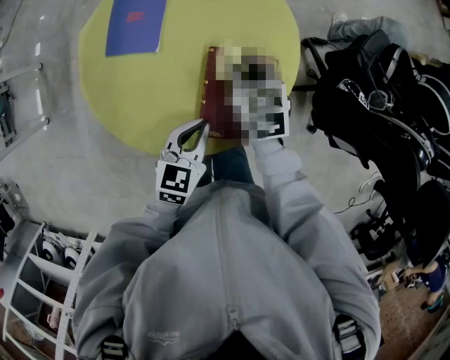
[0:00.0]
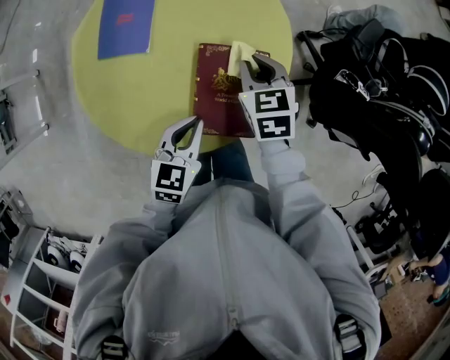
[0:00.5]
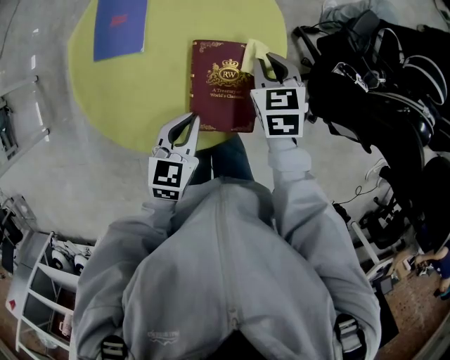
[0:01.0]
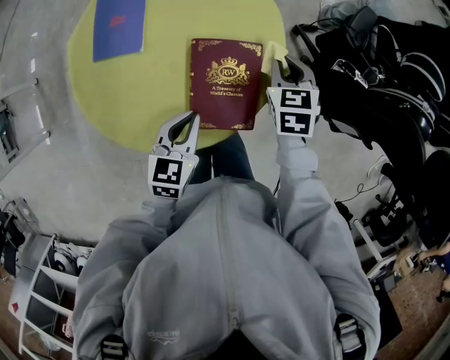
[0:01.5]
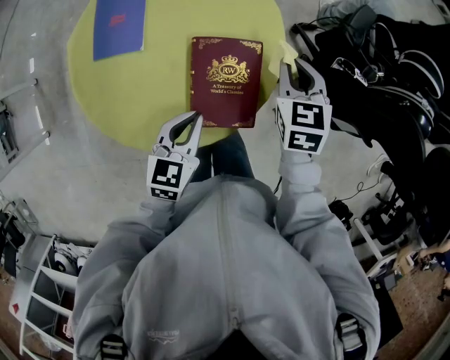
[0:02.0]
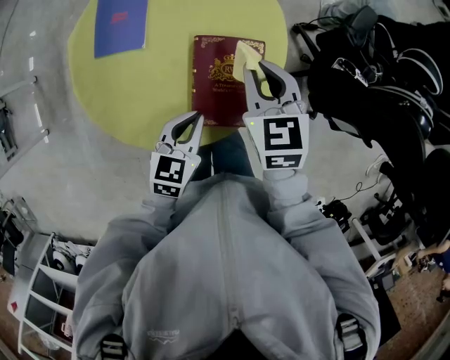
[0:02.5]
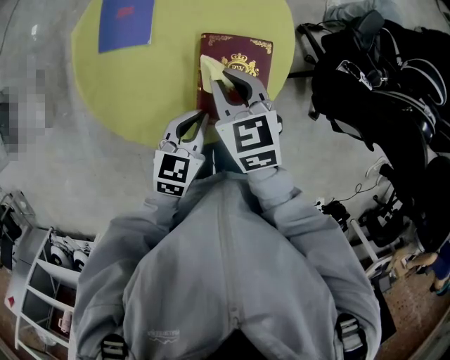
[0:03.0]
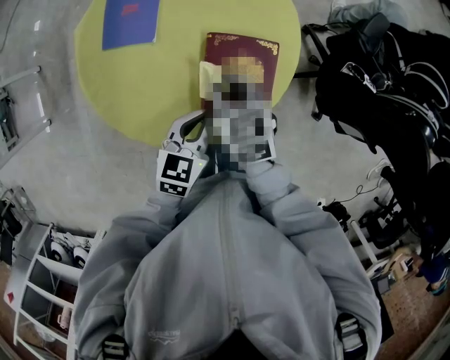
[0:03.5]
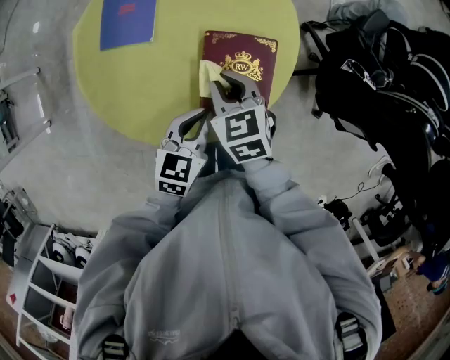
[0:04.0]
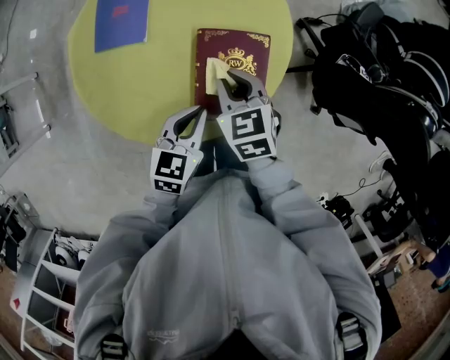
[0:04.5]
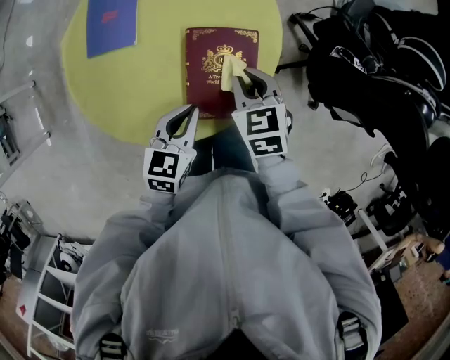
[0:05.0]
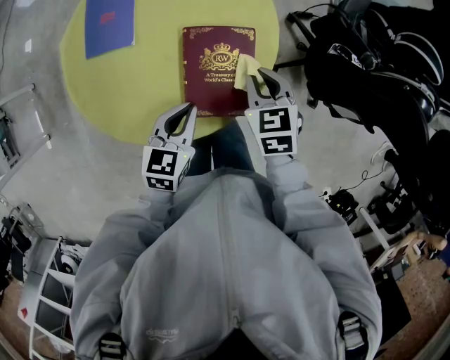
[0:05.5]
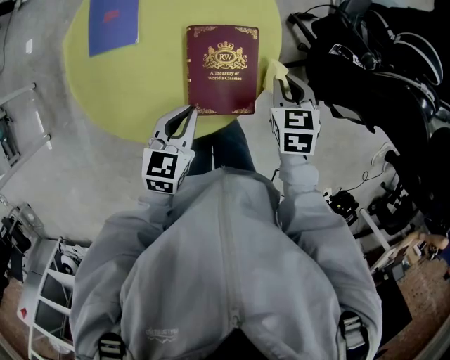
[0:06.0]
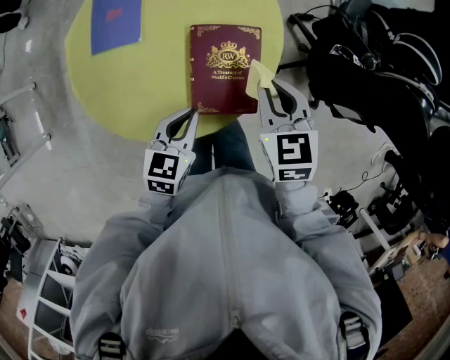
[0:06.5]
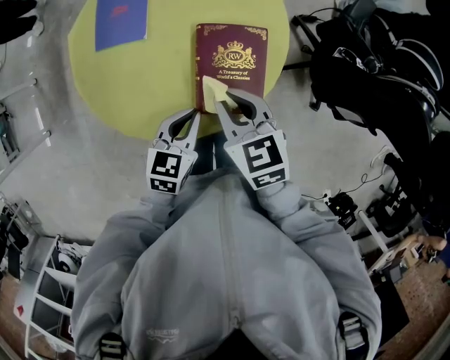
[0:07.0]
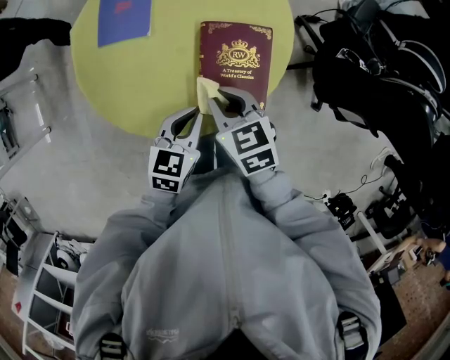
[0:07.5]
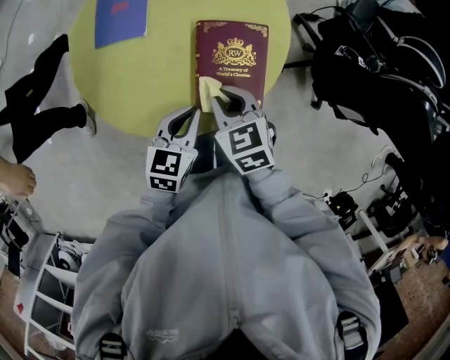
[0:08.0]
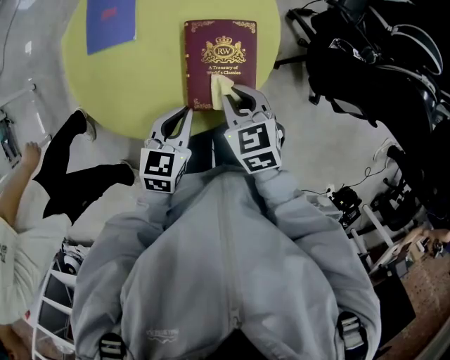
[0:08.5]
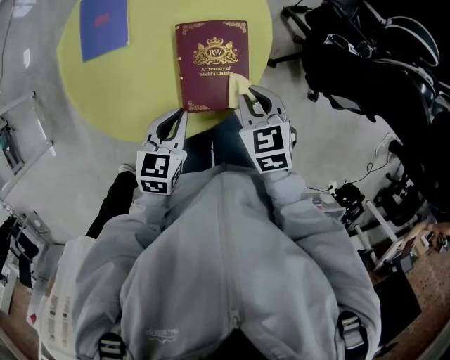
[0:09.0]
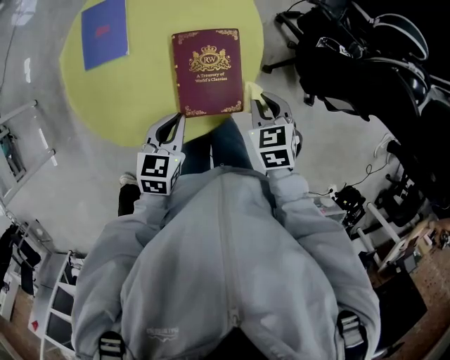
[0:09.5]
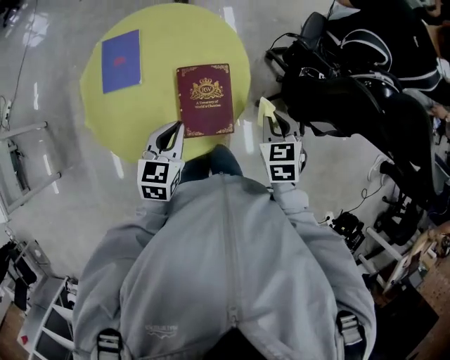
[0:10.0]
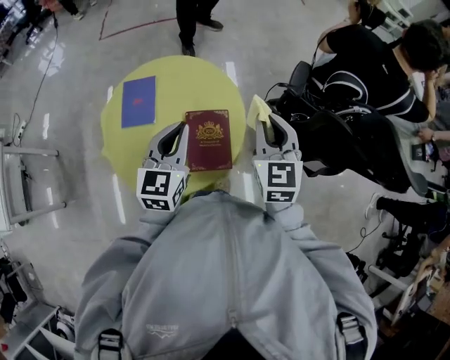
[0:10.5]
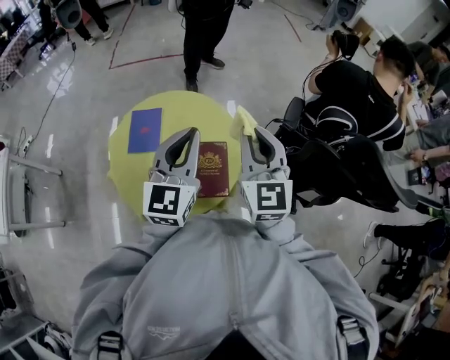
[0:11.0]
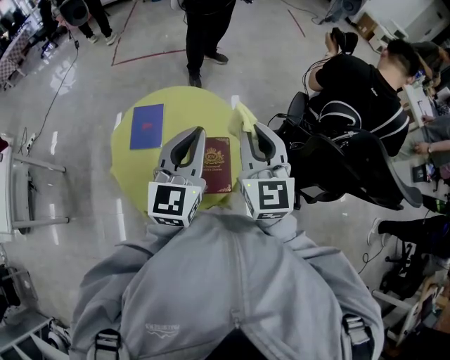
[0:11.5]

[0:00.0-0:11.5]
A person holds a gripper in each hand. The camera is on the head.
0:00.0 to 0:02.0: The right gripper goes about 15 cm to the right, and rotates some 20 degrees.
0:02.0 to 0:04.0: The right gripper goes roughly 20 cm to the left and backward, and swivels some 20 degrees.
0:04.0 to 0:06.0: The right gripper goes approximately 20 cm to the right, and swivels some 20 degrees.
0:06.0 to 0:07.5: The right gripper travels to the left by roughly 20 cm, and rotates roughly 30 degrees.
0:07.5 to 0:09.5: The right gripper goes some 15 cm to the right, and turns by roughly 20 degrees.
0:09.5 to 0:11.5: Both grippers travel together upward, some 40 cm. The right gripper tips its fingers upward by approximately 50 degrees; the left gripper angles its fingers upward, by some 40 degrees.

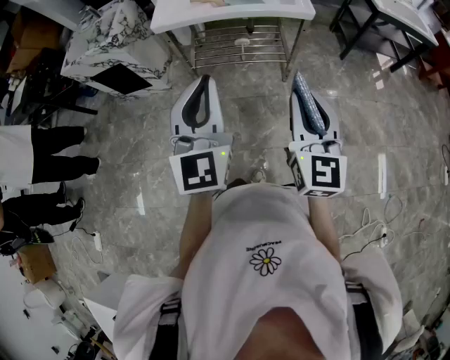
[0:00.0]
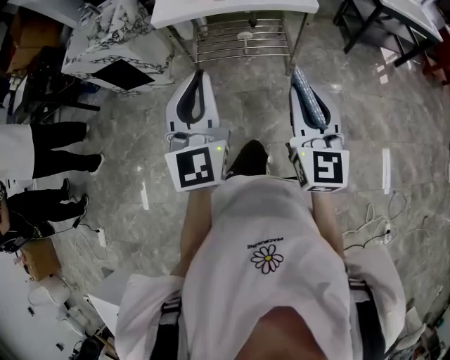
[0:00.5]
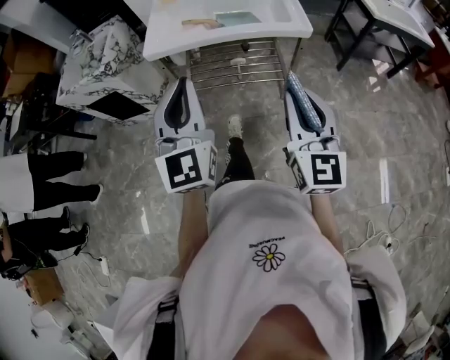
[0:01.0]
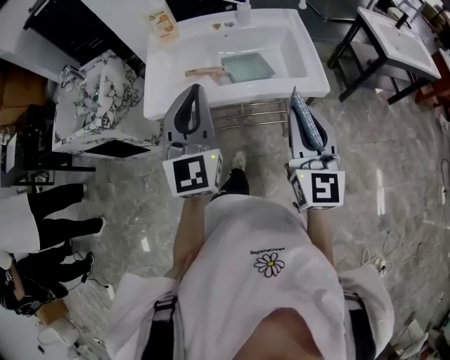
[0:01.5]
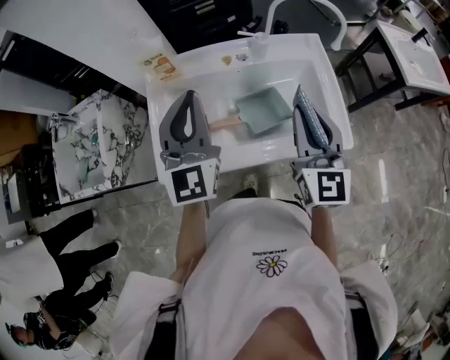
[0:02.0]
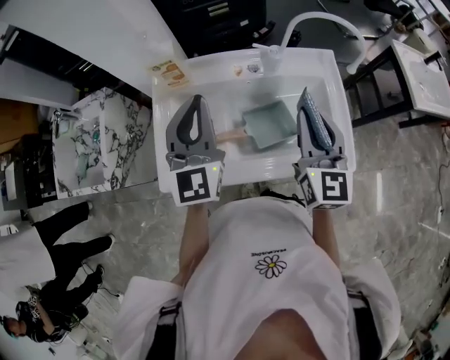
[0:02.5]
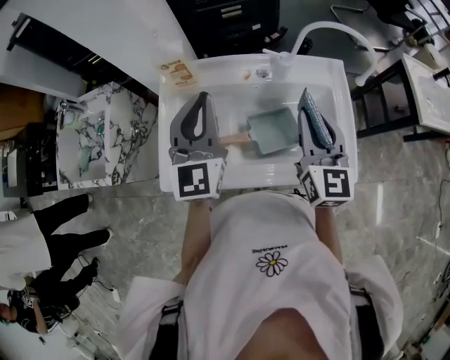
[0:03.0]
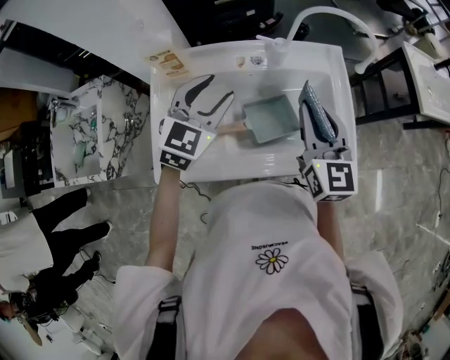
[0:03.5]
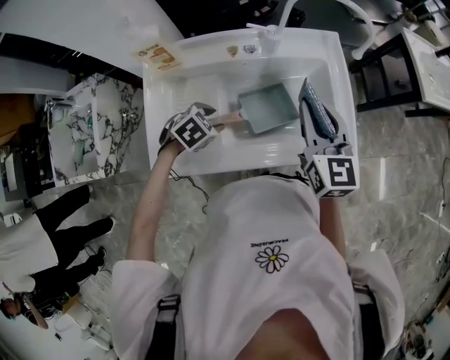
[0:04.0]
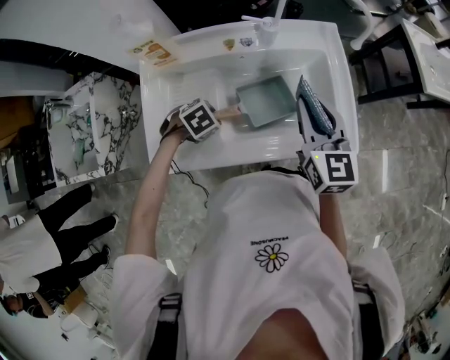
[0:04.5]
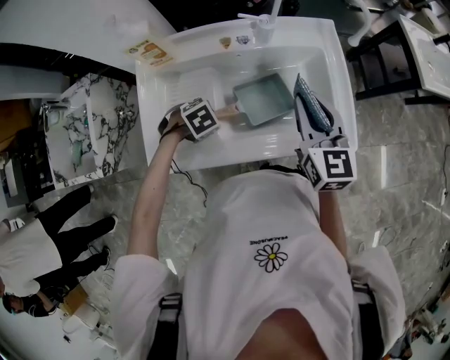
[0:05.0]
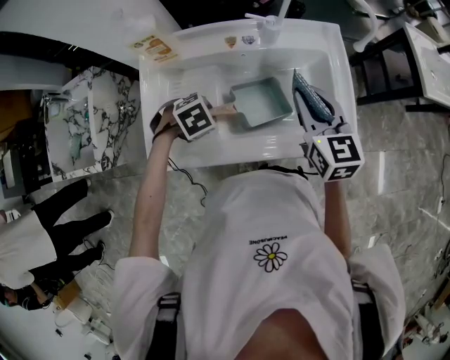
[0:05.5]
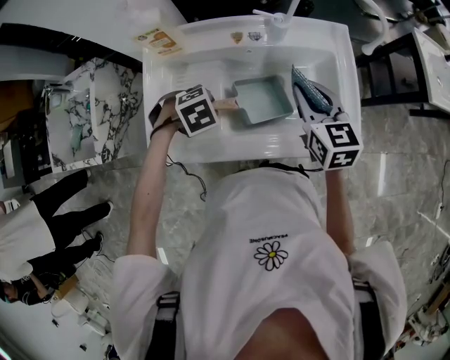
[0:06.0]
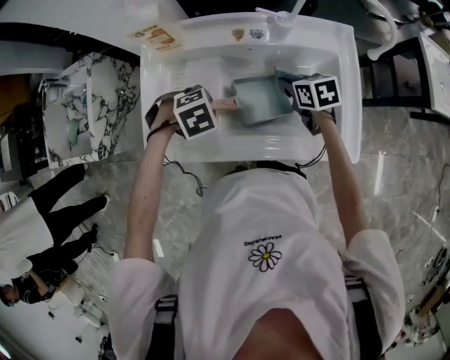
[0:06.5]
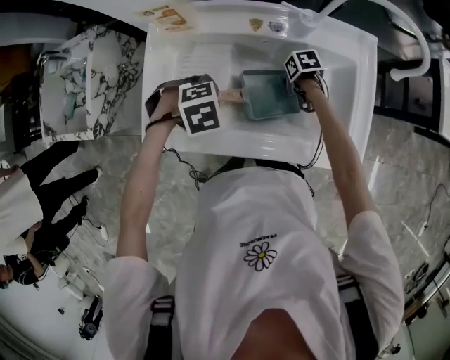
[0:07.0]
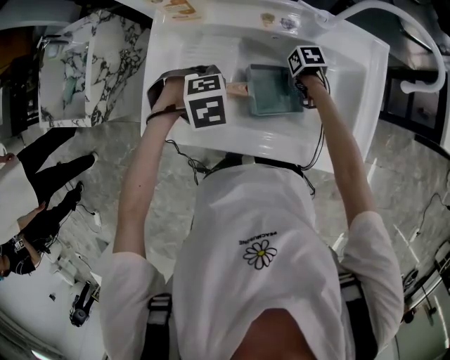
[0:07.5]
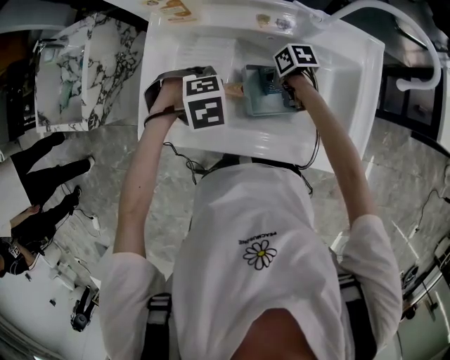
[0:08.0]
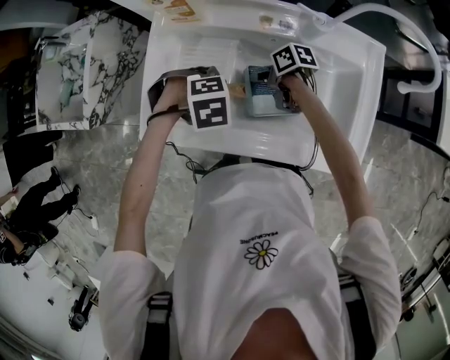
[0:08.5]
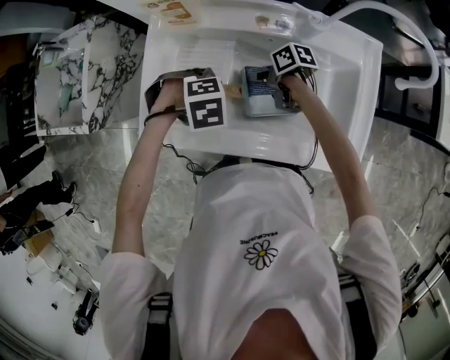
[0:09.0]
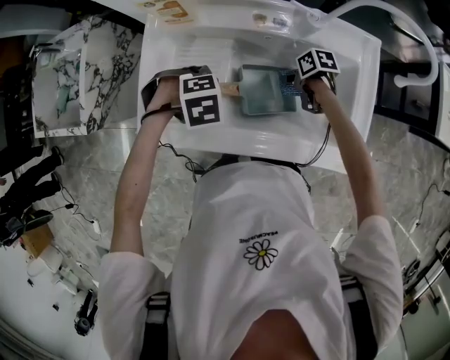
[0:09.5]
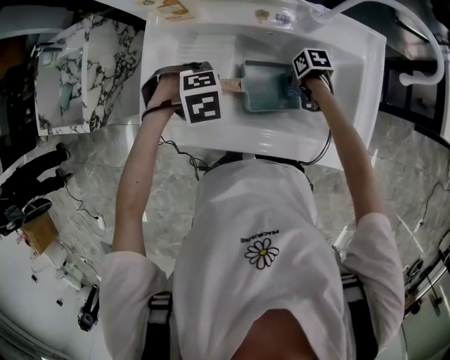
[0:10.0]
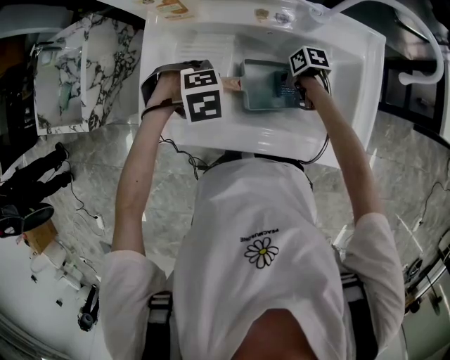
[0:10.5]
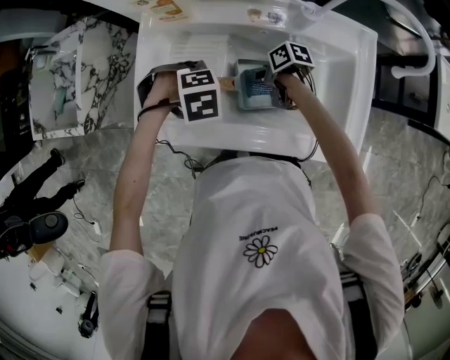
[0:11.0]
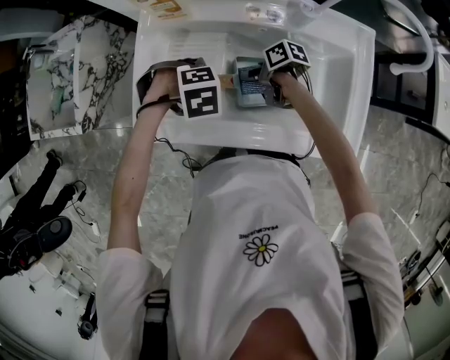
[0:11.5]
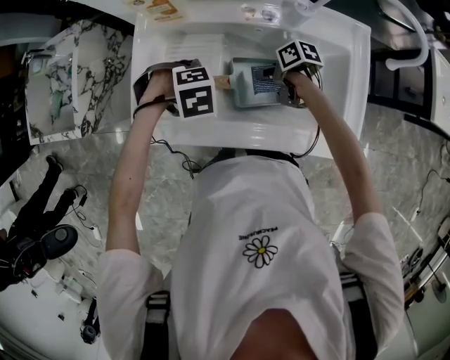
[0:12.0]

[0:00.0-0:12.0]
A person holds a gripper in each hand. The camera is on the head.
0:00.0 to 0:02.0: The two grippers travel together, forward, about 60 cm.
0:02.0 to 0:04.0: The left gripper heads downward, covering approximately 30 cm, tilts its fingers approximately 80 degrees downward, and opens up. The right gripper moves roughly 10 cm.
0:04.0 to 0:06.0: The right gripper moves downward, some 5 cm.
0:06.0 to 0:08.0: The right gripper shifts approximately 25 cm downward, and changes its angle by roughly 70 degrees.
0:08.0 to 0:10.0: The right gripper ends up about 10 cm from where it was.
0:10.0 to 0:12.0: The right gripper travels upward by some 5 cm.

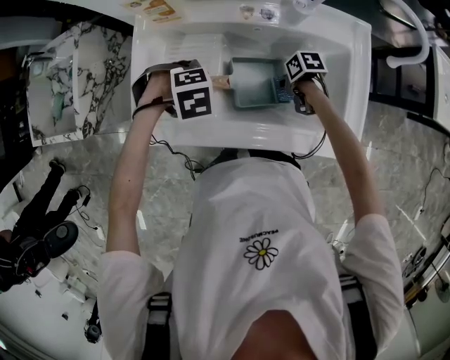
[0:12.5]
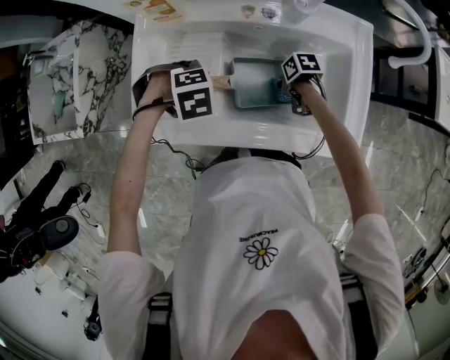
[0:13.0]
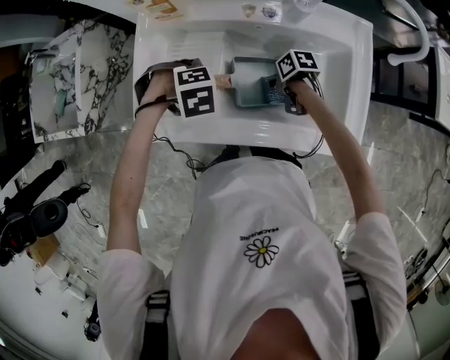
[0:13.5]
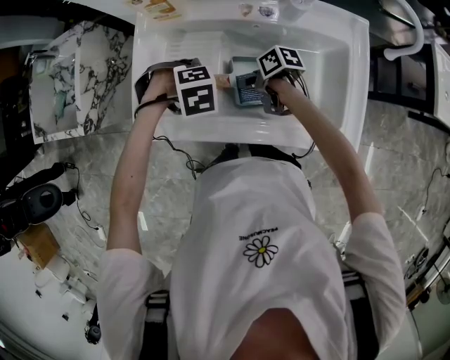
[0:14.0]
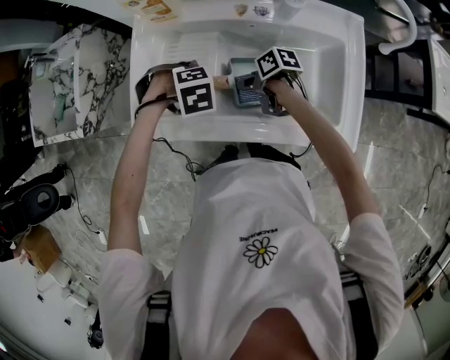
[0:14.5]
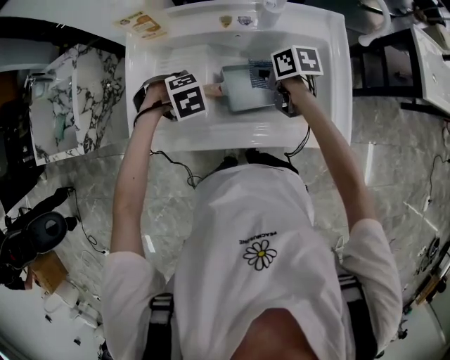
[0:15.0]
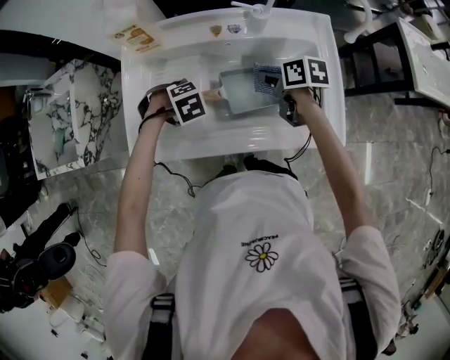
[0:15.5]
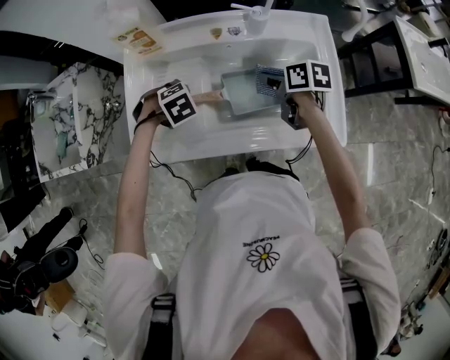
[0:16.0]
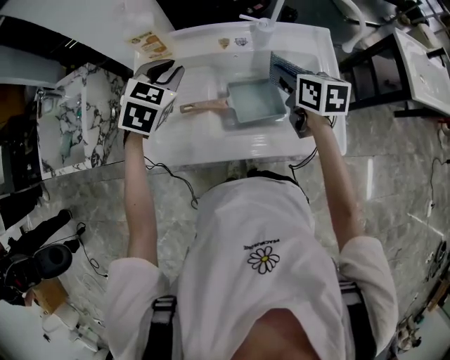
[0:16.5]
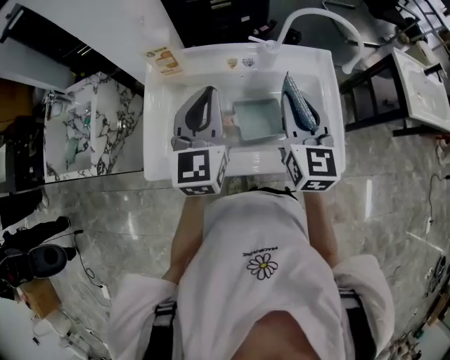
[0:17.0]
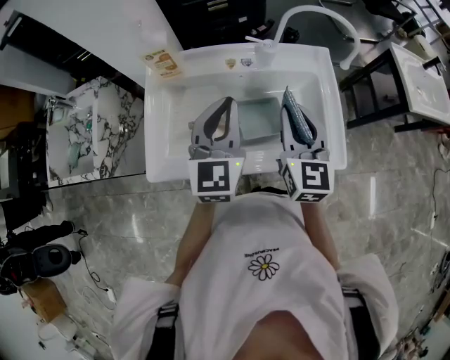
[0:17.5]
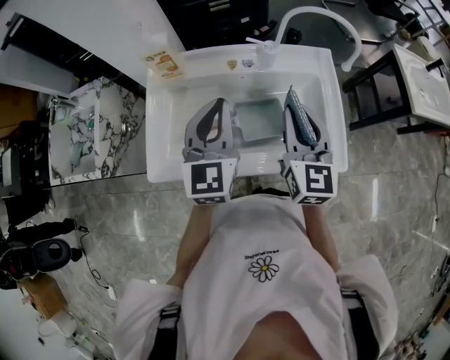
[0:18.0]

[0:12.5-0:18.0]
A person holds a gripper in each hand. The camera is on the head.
0:12.5 to 0:14.5: The right gripper ends up approximately 15 cm from where it was, and rotates roughly 20 degrees.
0:14.5 to 0:16.0: The right gripper ends up about 15 cm from where it was, and rotates approximately 30 degrees.
0:16.0 to 0:18.0: The grippers both shift upward by about 25 cm. The left gripper tips its fingers upward by about 80 degrees, and closes its fingers. The right gripper angles its fingers upward, by some 40 degrees.
